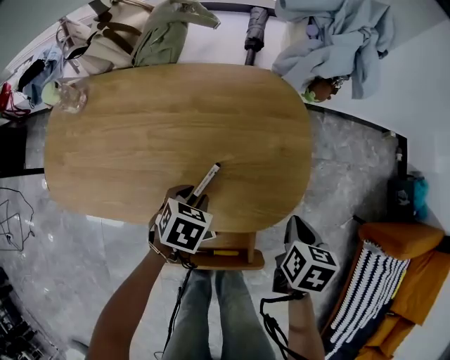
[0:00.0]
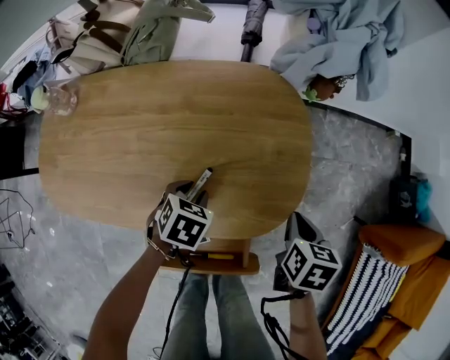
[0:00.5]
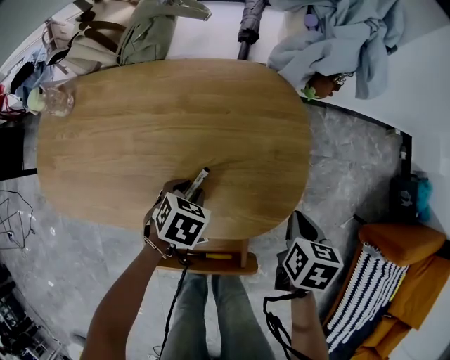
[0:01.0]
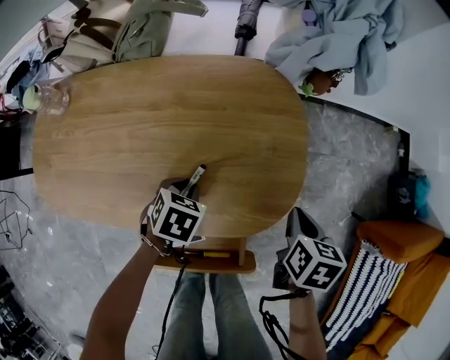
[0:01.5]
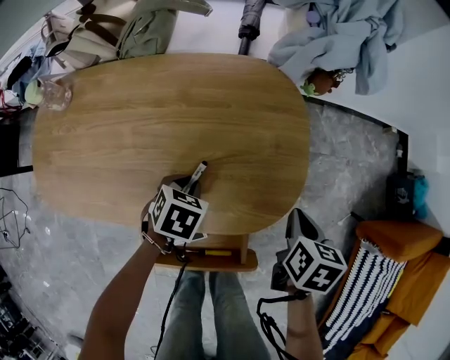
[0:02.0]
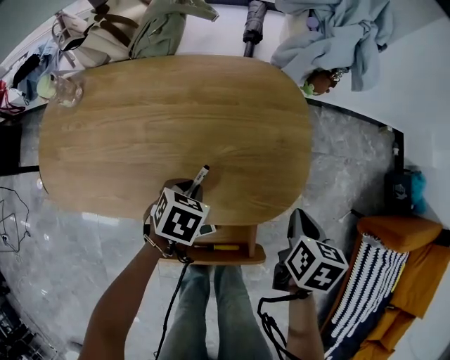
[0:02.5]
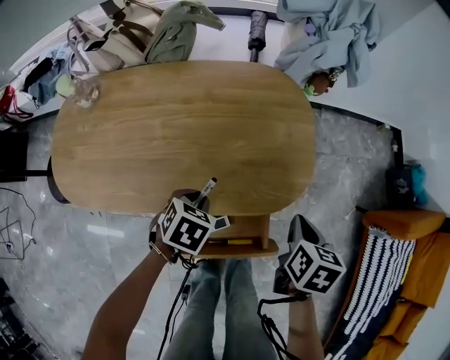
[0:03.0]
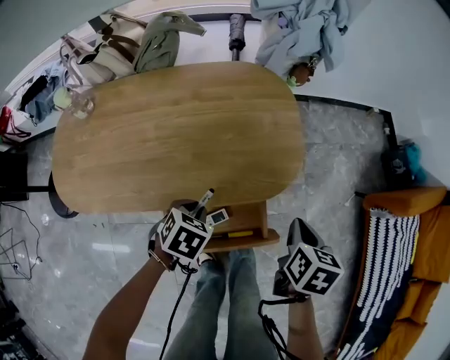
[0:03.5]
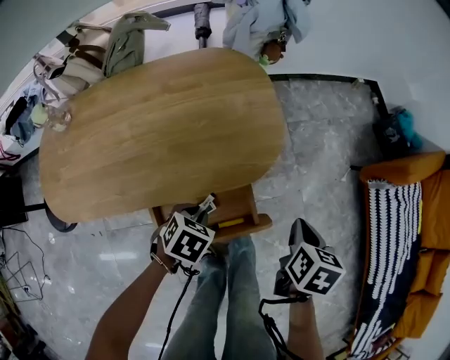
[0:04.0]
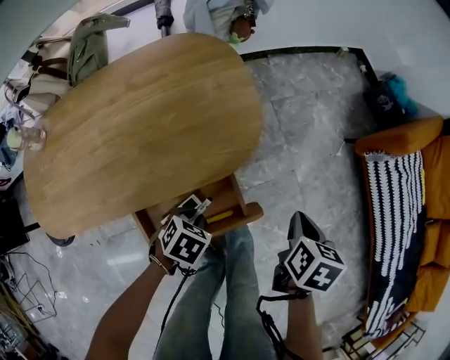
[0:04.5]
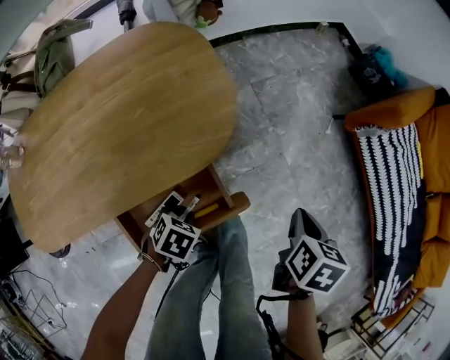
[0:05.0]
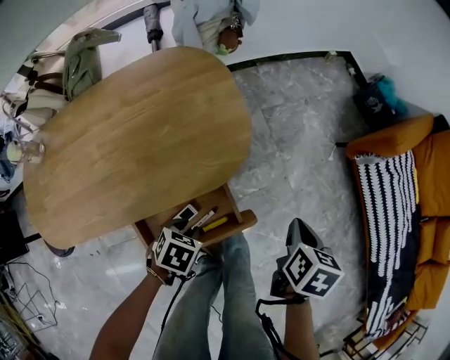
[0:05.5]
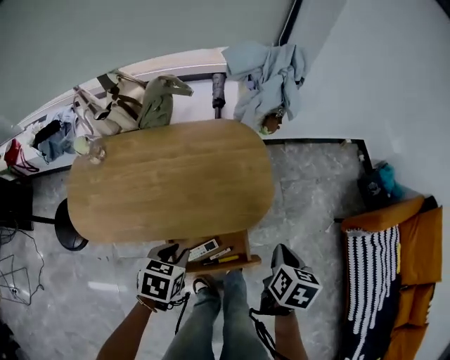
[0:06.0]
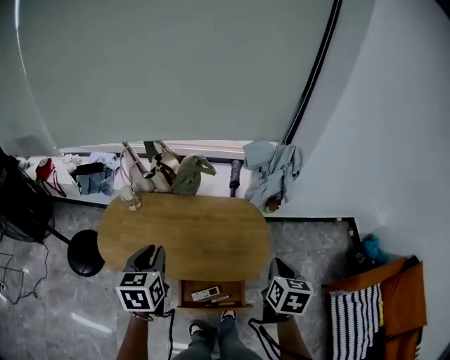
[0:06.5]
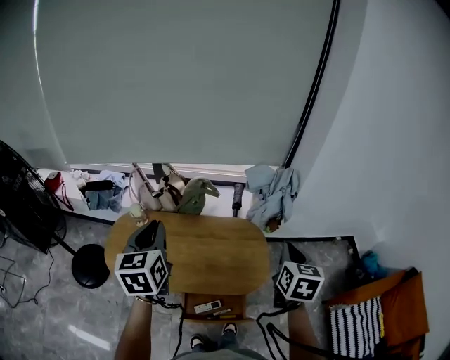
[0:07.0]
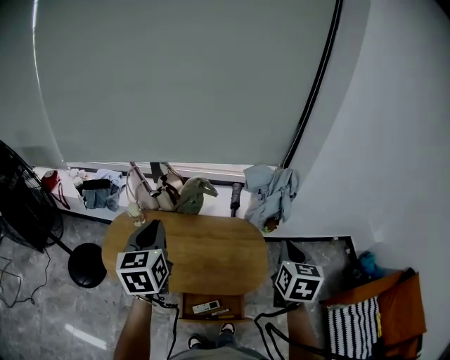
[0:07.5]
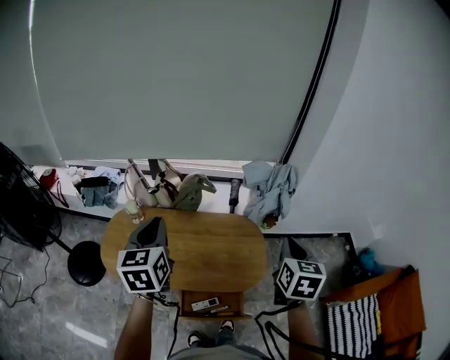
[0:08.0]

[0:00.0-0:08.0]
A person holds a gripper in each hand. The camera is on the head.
0:00.0 to 0:02.0: The grippers stay close to where they were, moving slightly.
0:02.0 to 0:04.0: The right gripper is displaced backward by roughly 20 cm. Meanwhile the left gripper is displaced backward and to the right by about 20 cm, and changes its angle by approximately 20 degrees.
0:04.0 to 0:06.0: The two grippers go roughly 15 cm upward. The left gripper turns by about 20 degrees.
0:06.0 to 0:08.0: The two grippers go some 35 cm upward. The left gripper points its fingers some 50 degrees further upward. Meanwhile the right gripper swivels roughly 40 degrees.

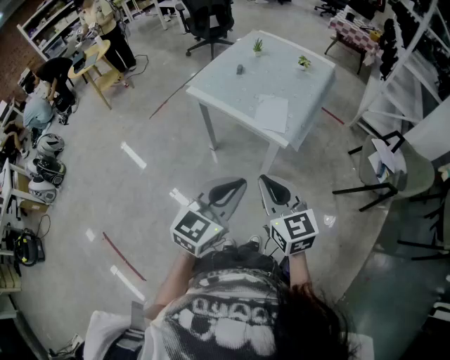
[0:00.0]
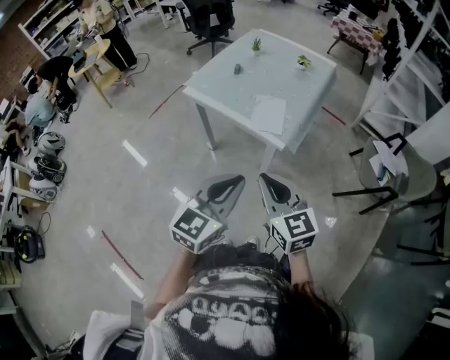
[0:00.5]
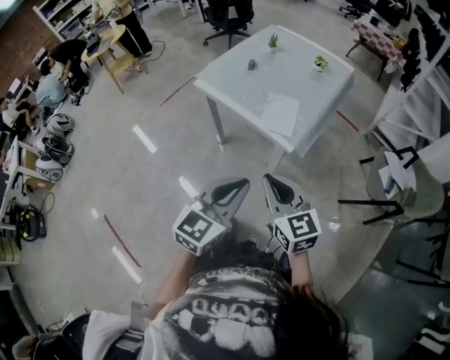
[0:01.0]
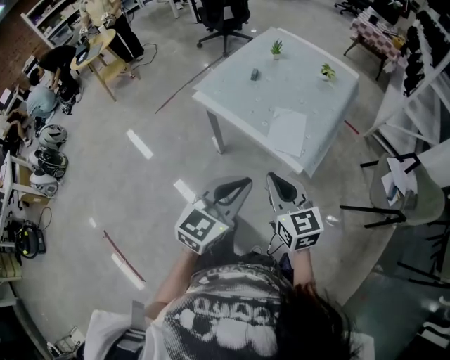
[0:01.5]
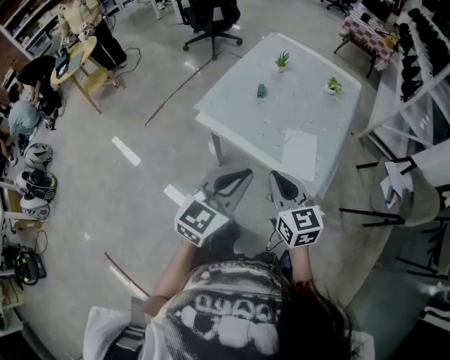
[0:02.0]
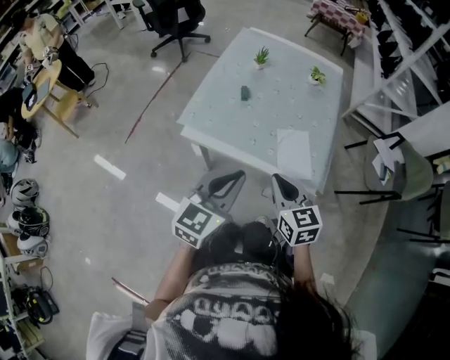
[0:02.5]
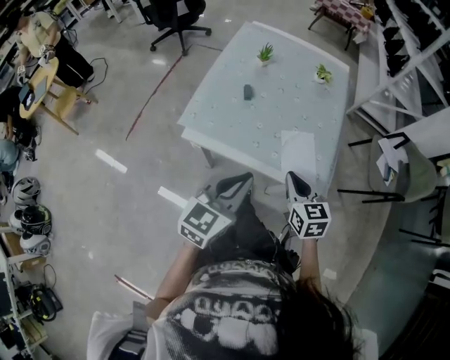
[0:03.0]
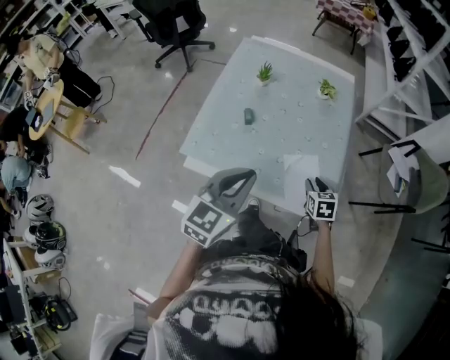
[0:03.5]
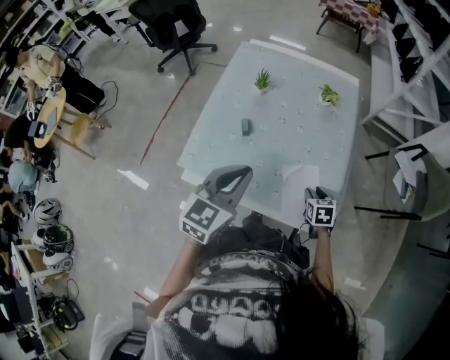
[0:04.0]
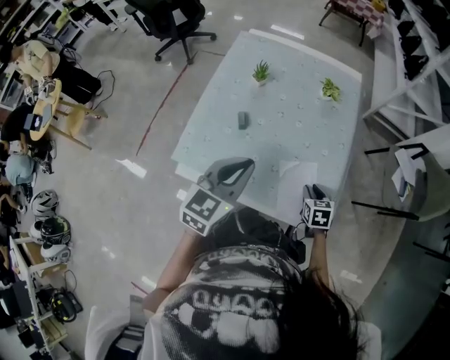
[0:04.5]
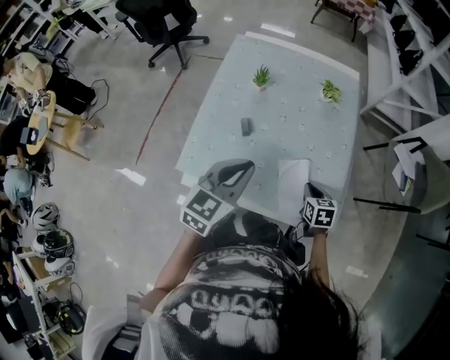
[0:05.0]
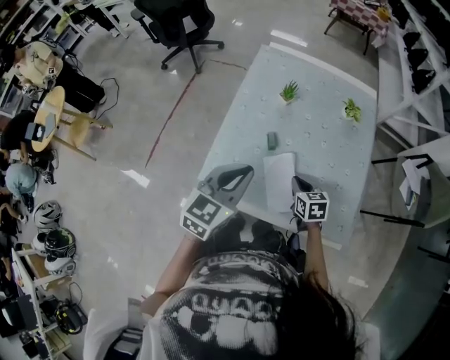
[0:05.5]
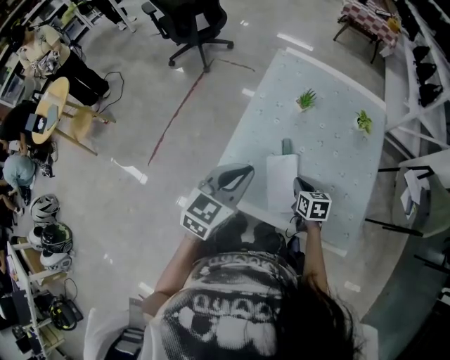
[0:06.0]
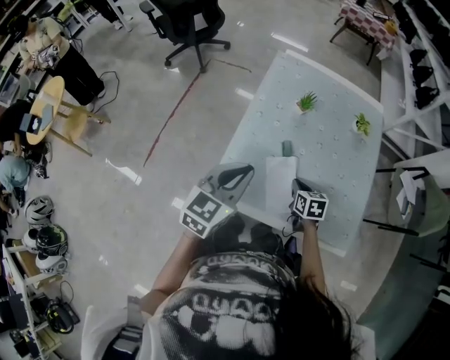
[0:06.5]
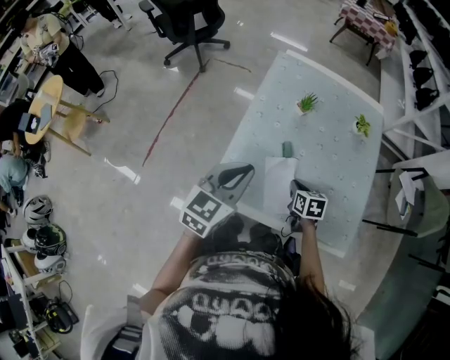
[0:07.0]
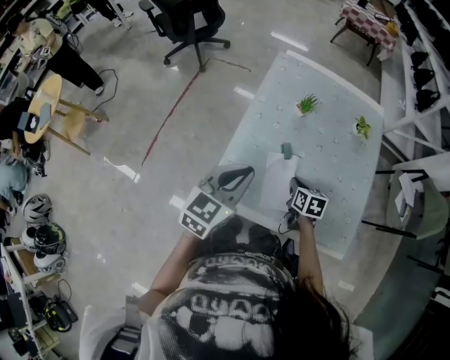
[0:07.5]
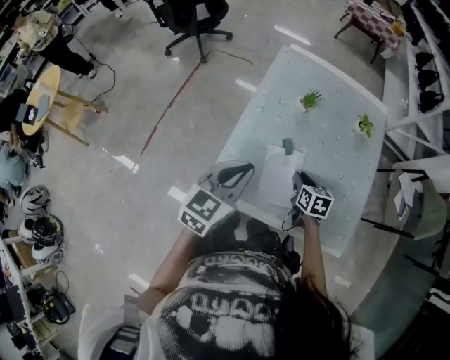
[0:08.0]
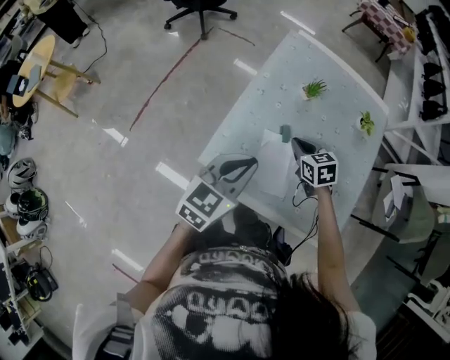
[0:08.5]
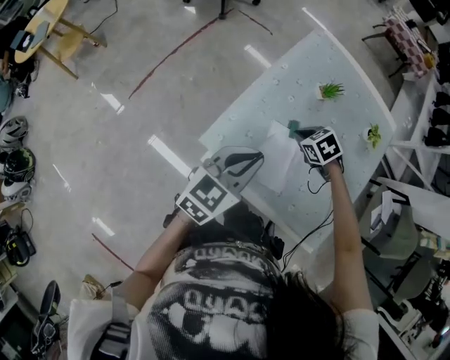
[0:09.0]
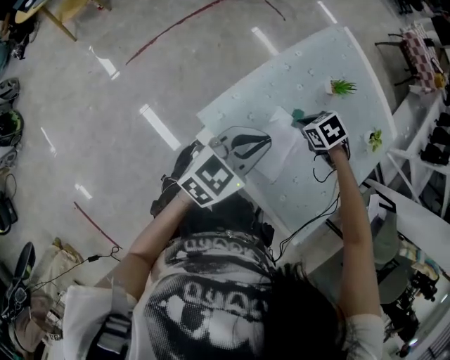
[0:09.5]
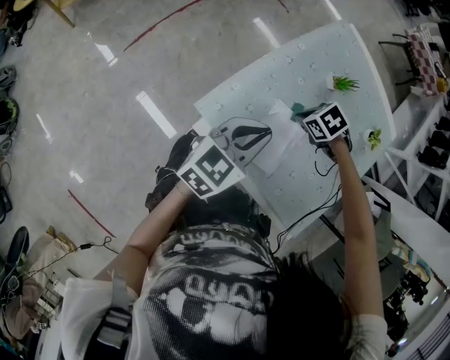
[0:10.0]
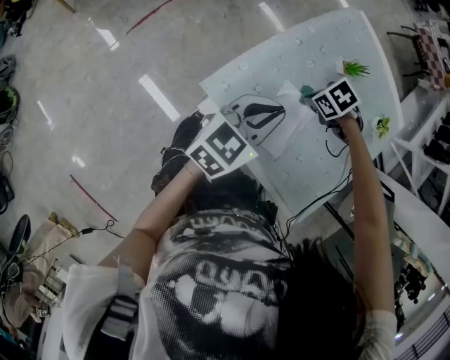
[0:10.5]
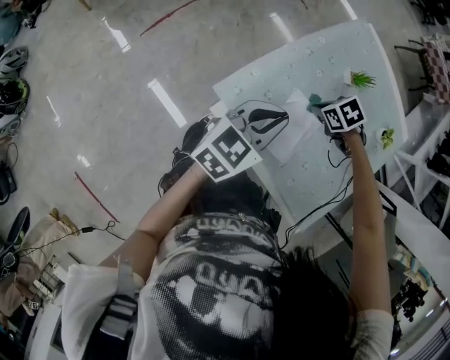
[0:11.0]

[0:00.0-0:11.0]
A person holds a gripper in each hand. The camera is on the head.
0:00.0 to 0:02.0: Both grippers move forward and to the left, some 30 cm.
0:02.0 to 0:03.5: The right gripper heads forward, downward and to the right, covering some 35 cm, points its fingers roughly 30 degrees further downward, and opens; the left gripper travels forward by approximately 20 cm.
0:03.5 to 0:05.5: The left gripper moves to the left and forward, roughly 15 cm. Meanwhile the right gripper travels to the left by roughly 20 cm, and closes up.
0:05.5 to 0:07.5: Both grippers travel together to the left, roughly 5 cm.
0:07.5 to 0:09.0: The right gripper changes place by some 10 cm, and rotates around the line of its fingers by about 60 degrees, counterclockwise from behind.

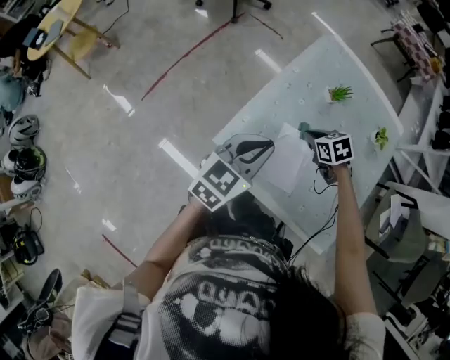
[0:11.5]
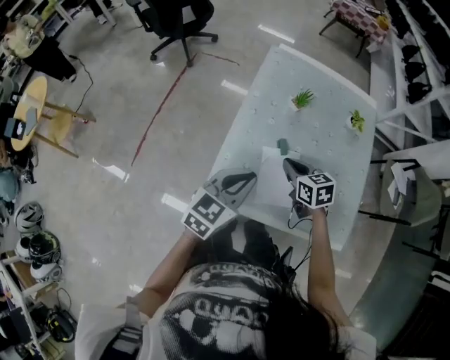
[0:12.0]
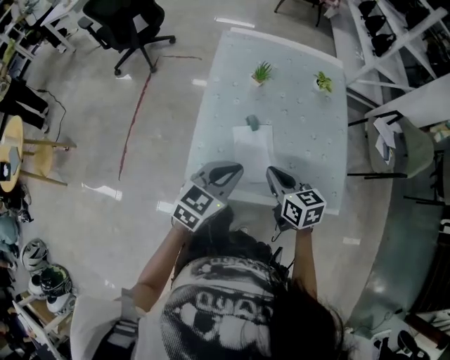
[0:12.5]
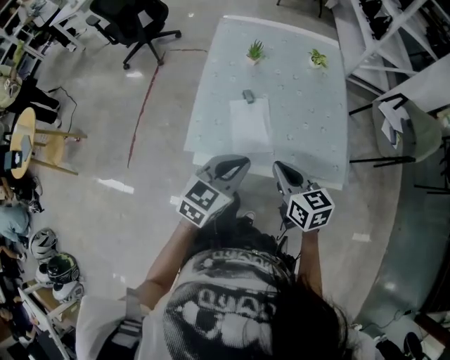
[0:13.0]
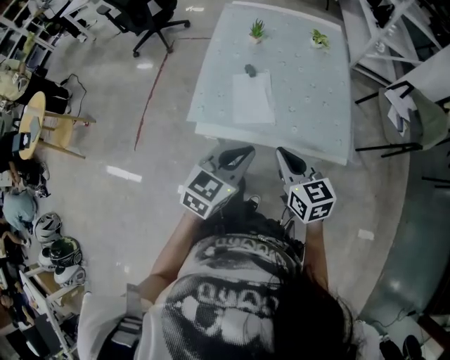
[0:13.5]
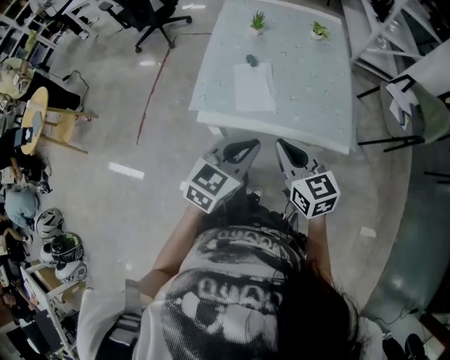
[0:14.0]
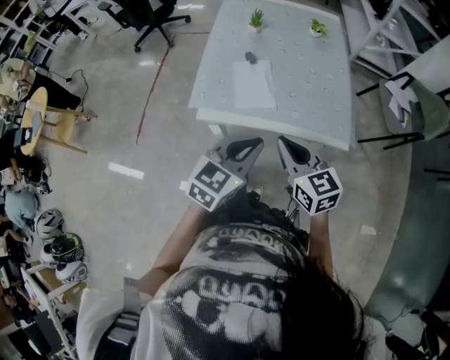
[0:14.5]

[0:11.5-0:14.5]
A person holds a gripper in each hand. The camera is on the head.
0:11.5 to 0:13.0: The left gripper ends up some 15 cm from where it was, and changes its angle by roughly 20 degrees; the right gripper moves roughly 30 cm, and points its fingers approximately 40 degrees further upward.
0:13.0 to 0:14.5: Both grippers move backward, some 10 cm.

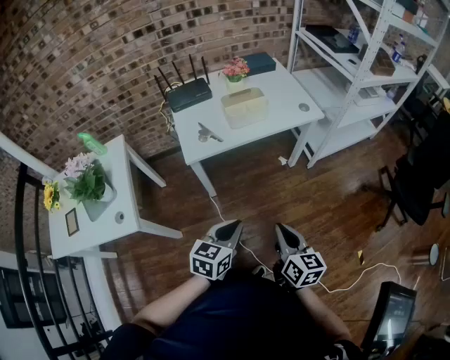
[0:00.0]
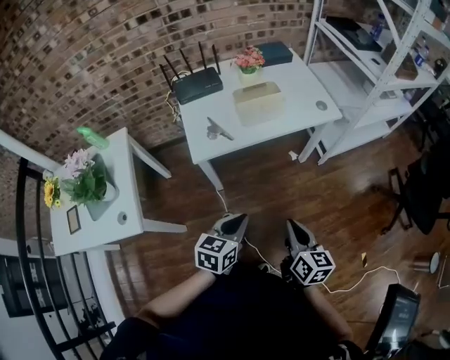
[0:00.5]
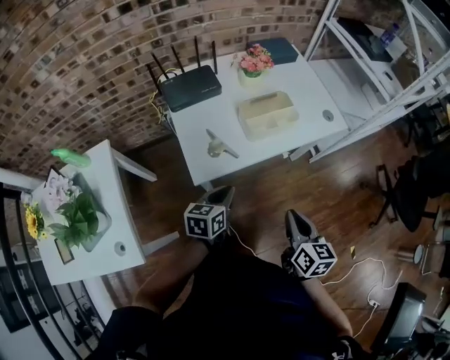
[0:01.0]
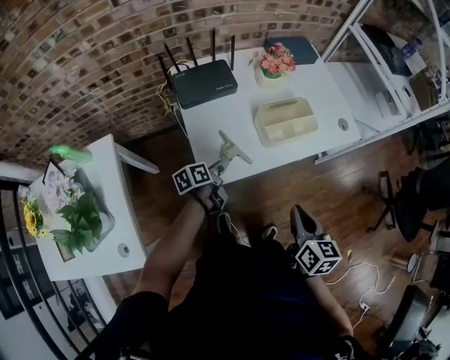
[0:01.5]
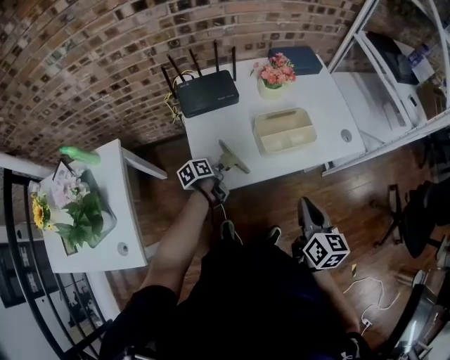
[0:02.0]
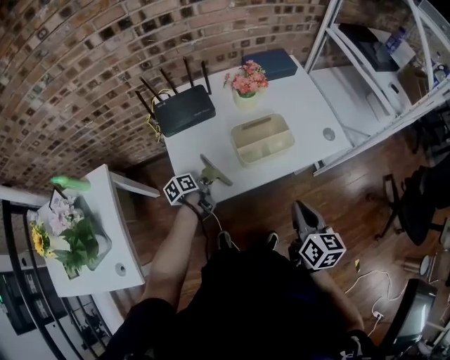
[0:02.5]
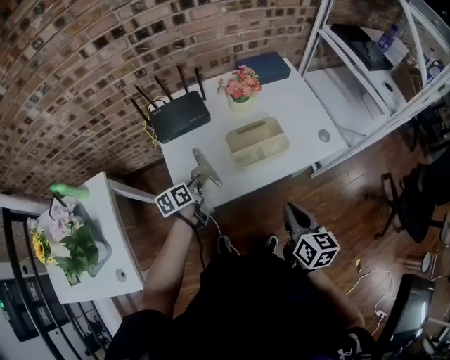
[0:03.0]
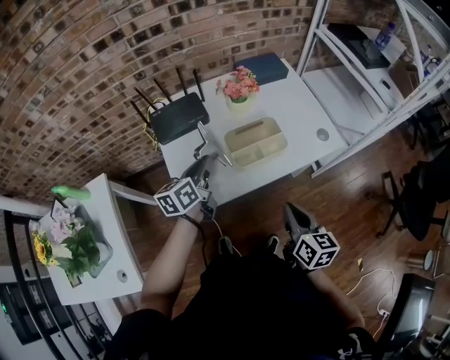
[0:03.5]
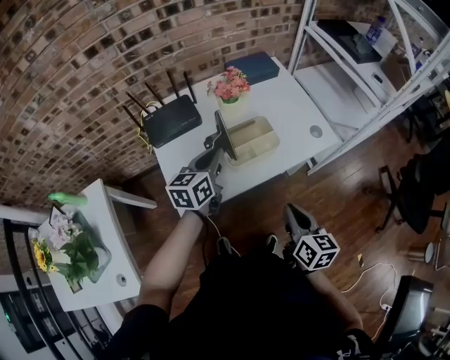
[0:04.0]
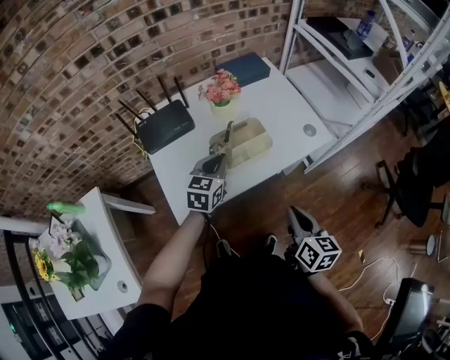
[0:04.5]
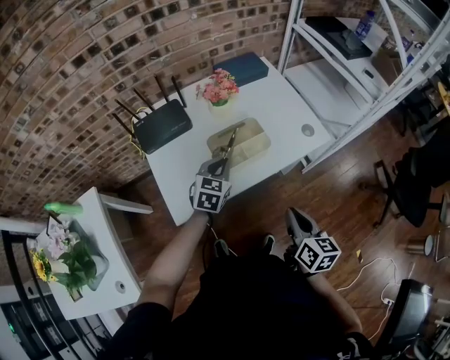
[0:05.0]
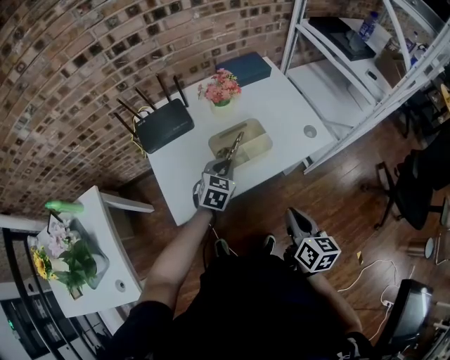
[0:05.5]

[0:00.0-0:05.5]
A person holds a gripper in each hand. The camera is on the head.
0:00.0 to 0:02.0: The right gripper heads forward, covering roughly 30 cm. The left gripper travels forward, to the left and downward by approximately 50 cm, twists about 60 degrees counterclockwise, seen from behind, and opens up.
0:02.0 to 0:03.5: The left gripper travels upward by approximately 20 cm, changes its angle by about 40 degrees, and closes.
0:03.5 to 0:05.5: The left gripper goes some 15 cm to the right and downward, and rolls clockwise, seen from behind, by roughly 50 degrees. The right gripper ends up some 5 cm from where it was.
